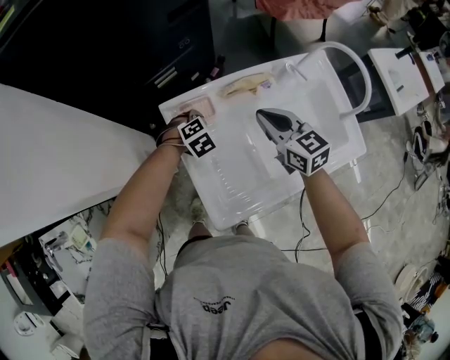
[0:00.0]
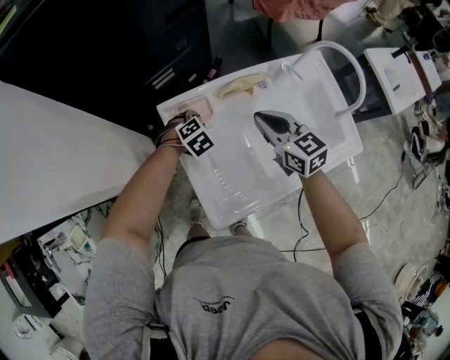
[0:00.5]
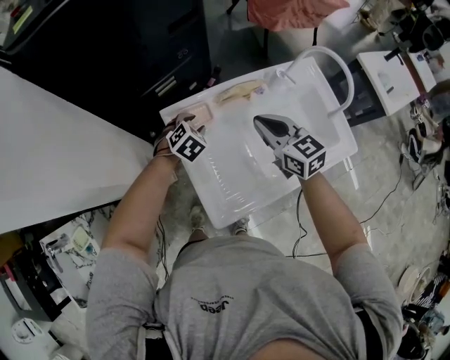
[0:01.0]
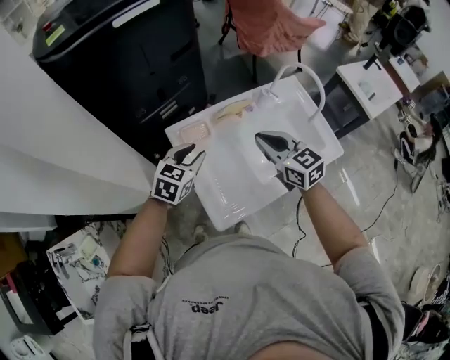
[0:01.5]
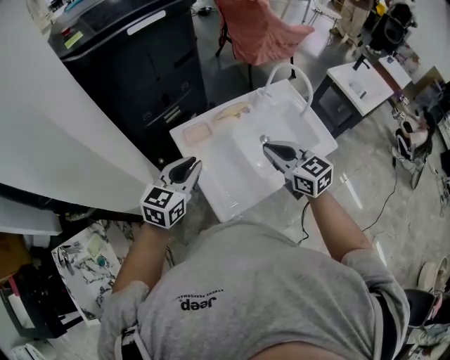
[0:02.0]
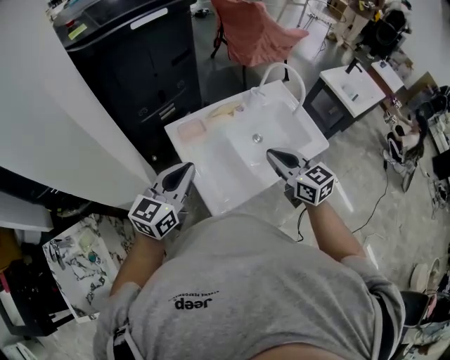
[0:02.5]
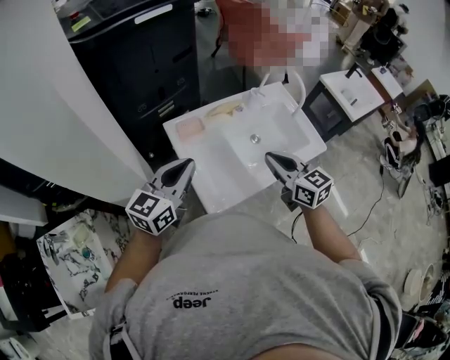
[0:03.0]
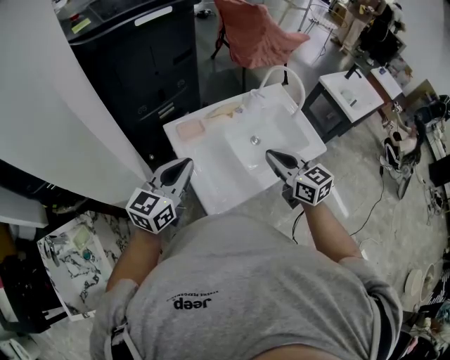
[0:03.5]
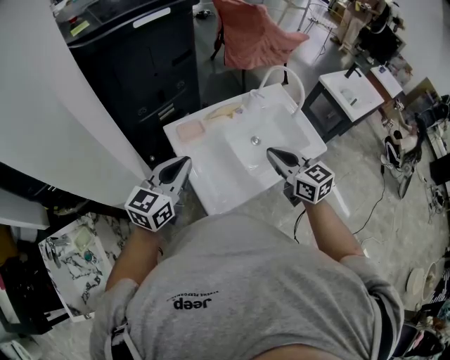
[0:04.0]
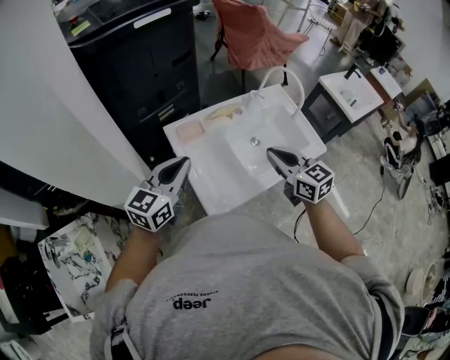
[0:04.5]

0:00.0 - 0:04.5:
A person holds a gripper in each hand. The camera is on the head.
0:00.0 - 0:02.0: The right gripper heads backward and upward, covering approximately 20 cm. The left gripper moves upward and backward, about 35 cm, tips its fingers upward by some 50 degrees, and opens and closes again.

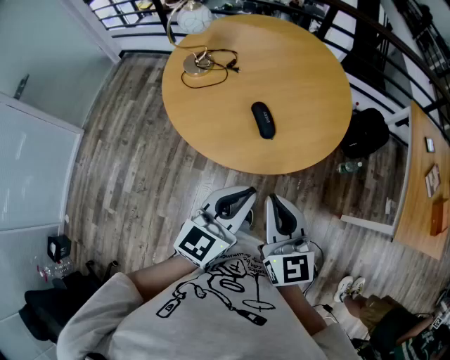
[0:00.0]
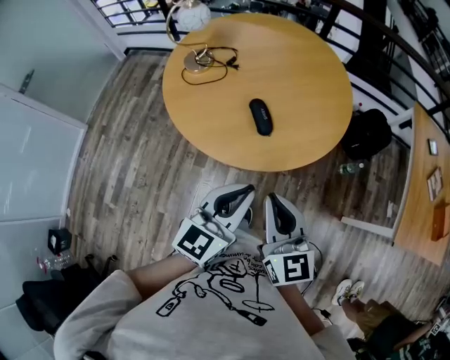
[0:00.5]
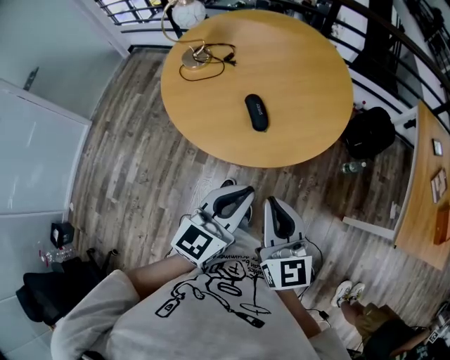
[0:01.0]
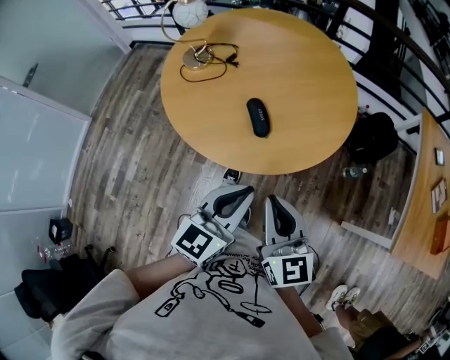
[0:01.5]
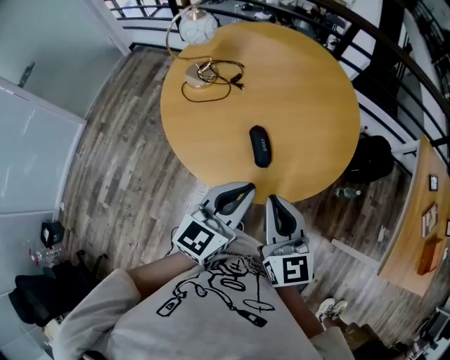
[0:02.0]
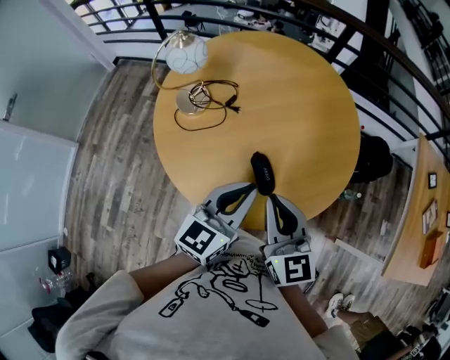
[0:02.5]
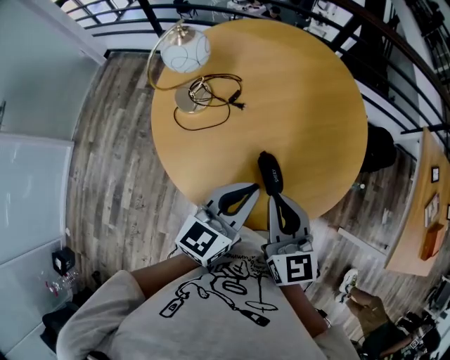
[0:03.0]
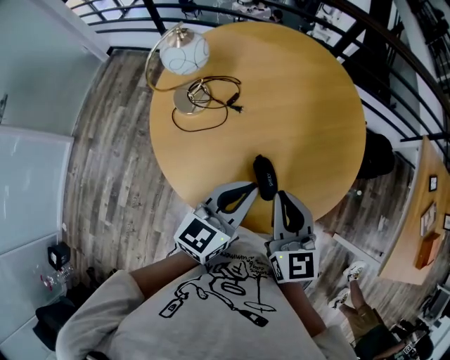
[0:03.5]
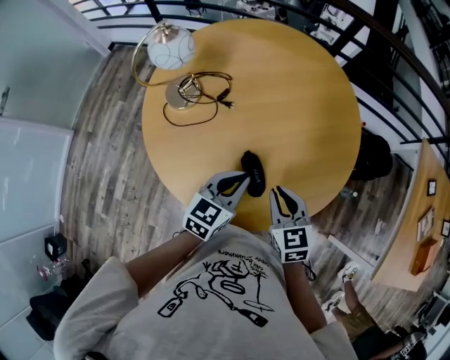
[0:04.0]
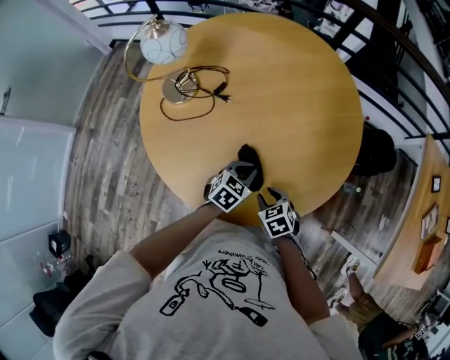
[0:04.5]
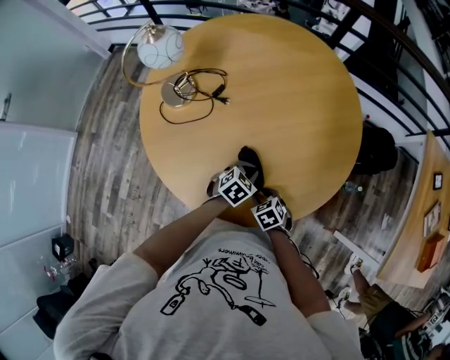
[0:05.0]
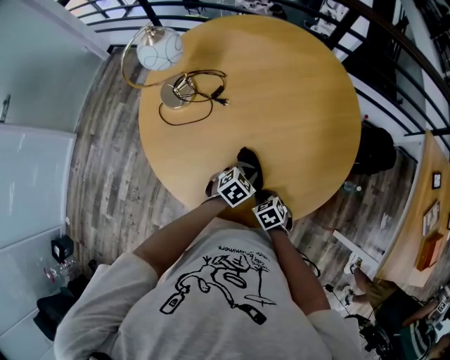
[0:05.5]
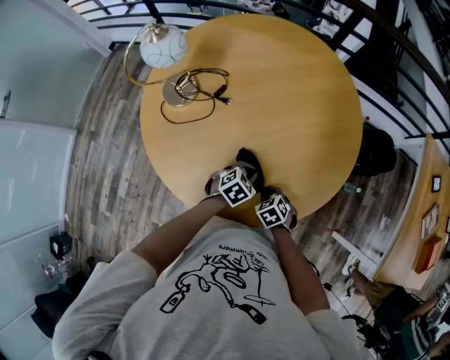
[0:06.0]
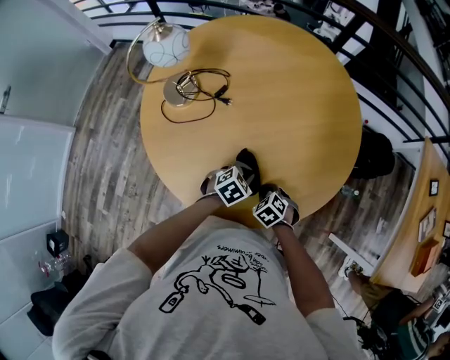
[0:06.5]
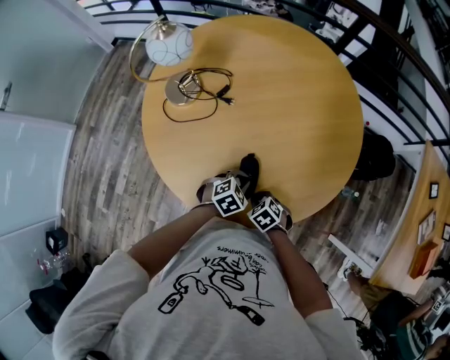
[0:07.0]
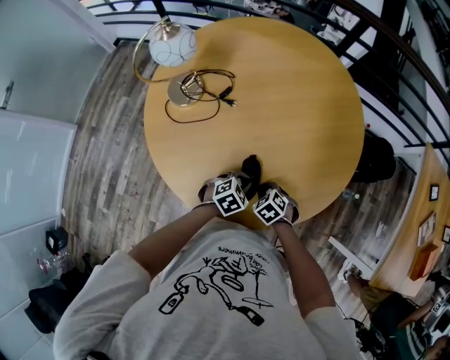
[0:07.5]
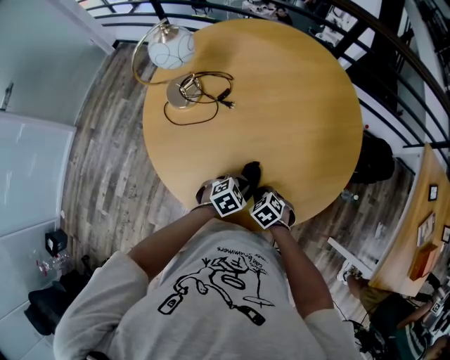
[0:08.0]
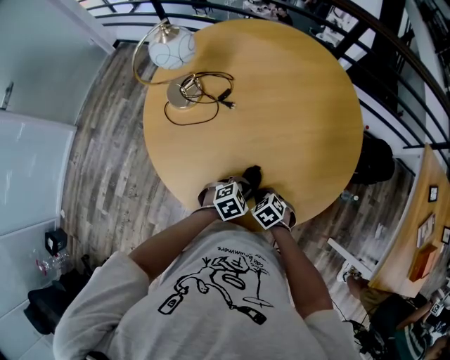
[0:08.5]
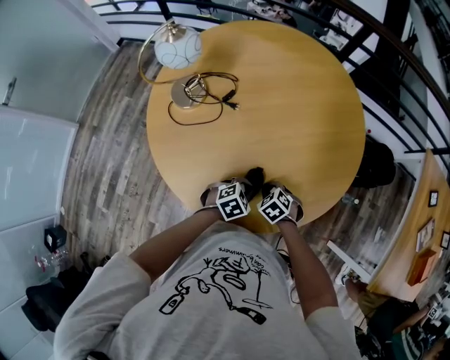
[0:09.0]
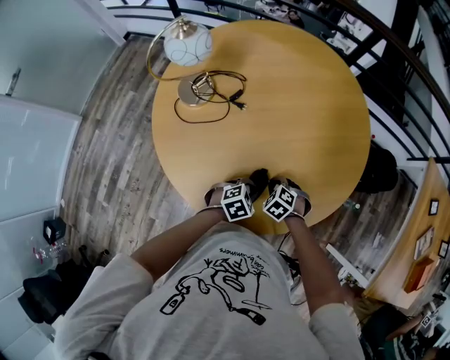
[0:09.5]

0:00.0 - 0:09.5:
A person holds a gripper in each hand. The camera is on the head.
0:00.0 - 0:02.0: The grippers both shift forward by roughly 15 cm.
0:02.0 - 0:04.0: Both grippers move forward and downward, roughly 20 cm. The right gripper rotates approximately 30 degrees.
0:04.0 - 0:05.5: Both grippers move downward, roughly 20 cm. The left gripper swivels approximately 40 degrees; the right gripper changes its angle by some 30 degrees, and opens, then closes once more.
0:07.5 - 0:09.5: The grippers stay close to where they were, moving slightly.

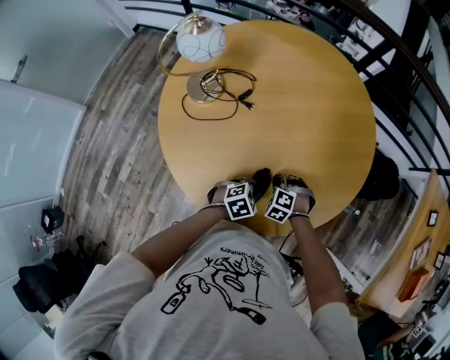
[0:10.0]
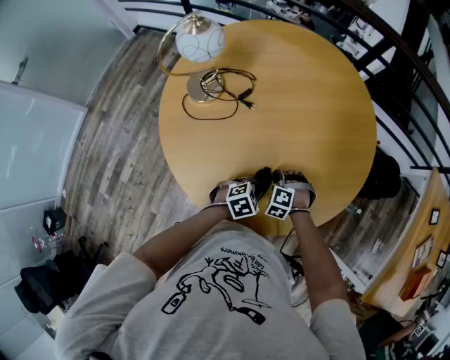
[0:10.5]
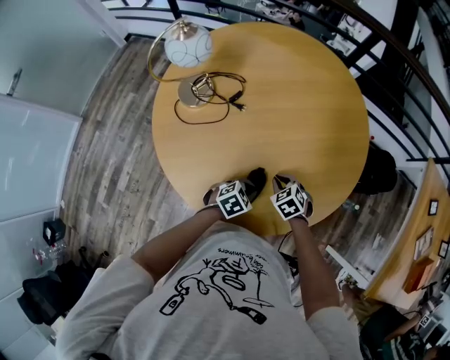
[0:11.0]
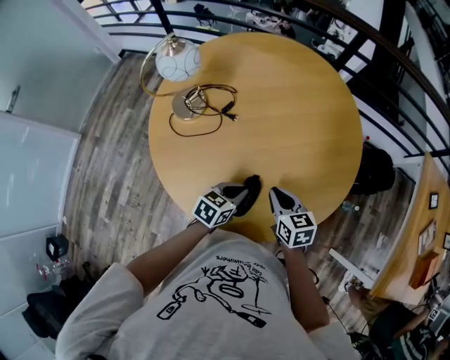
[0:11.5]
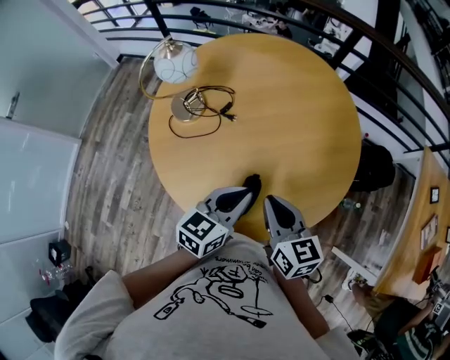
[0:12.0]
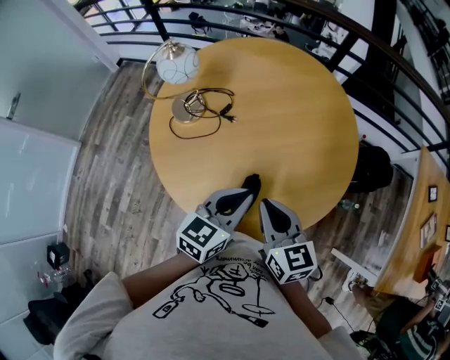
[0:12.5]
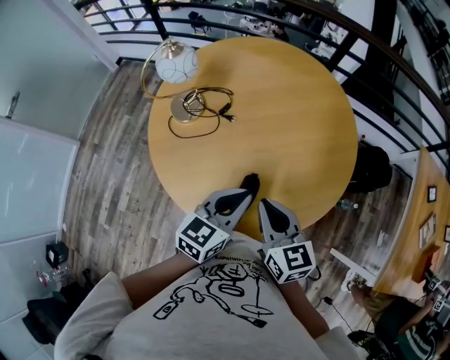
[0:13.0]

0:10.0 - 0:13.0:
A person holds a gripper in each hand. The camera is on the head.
0:10.0 - 0:11.5: The left gripper travels upward by some 10 cm, and rotates about 40 degrees. The right gripper heads upward, covering about 15 cm, and twists about 70 degrees clockwise, seen from behind.
0:11.5 - 0:13.0: Both grippers travel together upward, roughly 15 cm. The left gripper rotates about 20 degrees.

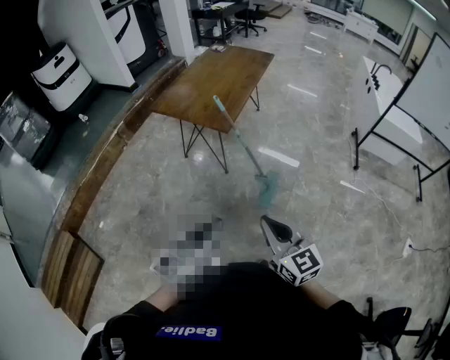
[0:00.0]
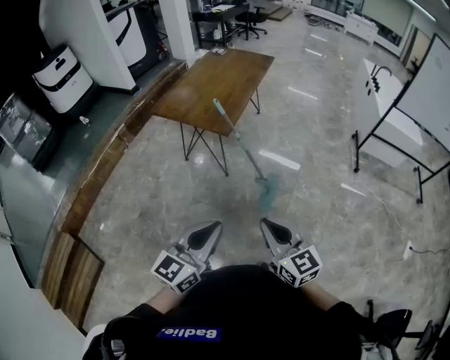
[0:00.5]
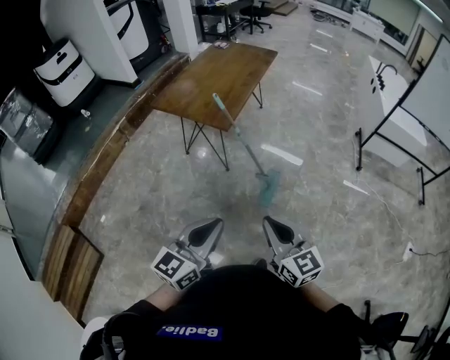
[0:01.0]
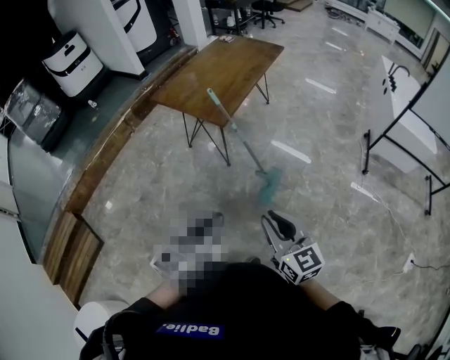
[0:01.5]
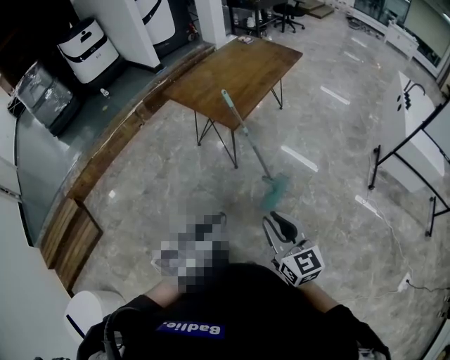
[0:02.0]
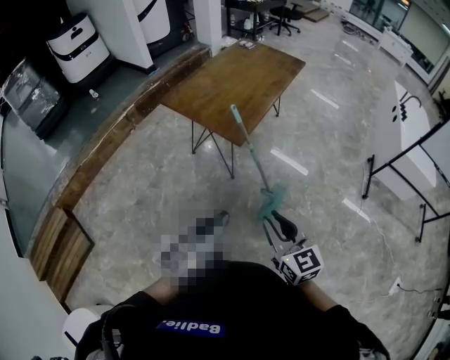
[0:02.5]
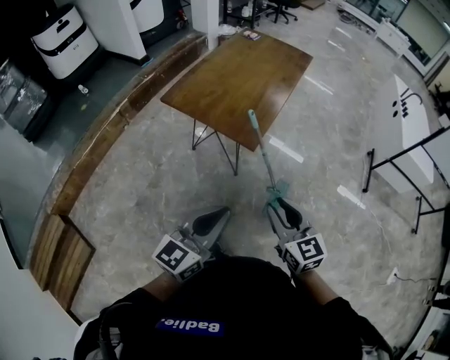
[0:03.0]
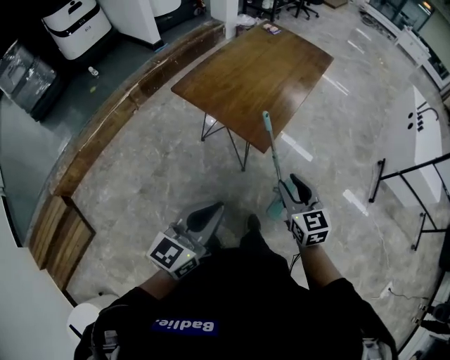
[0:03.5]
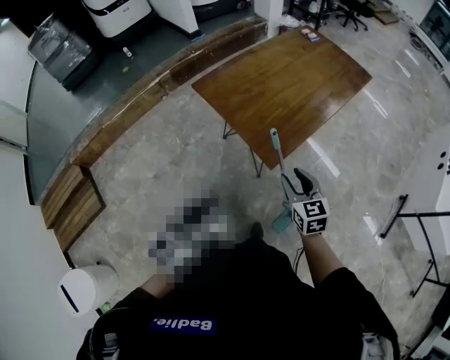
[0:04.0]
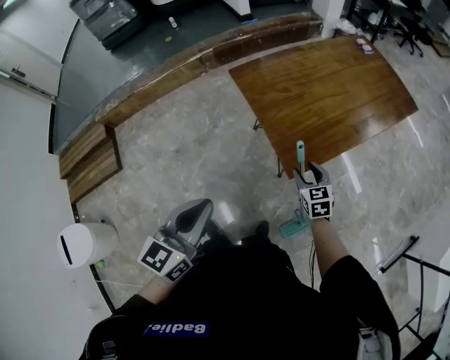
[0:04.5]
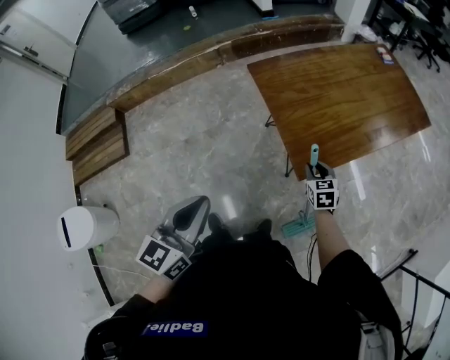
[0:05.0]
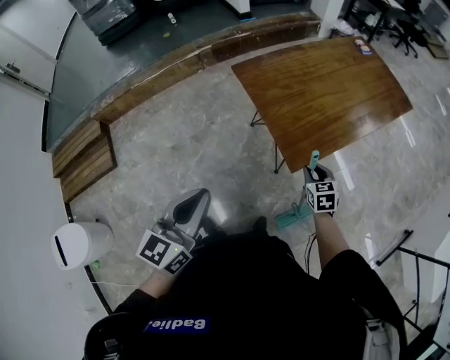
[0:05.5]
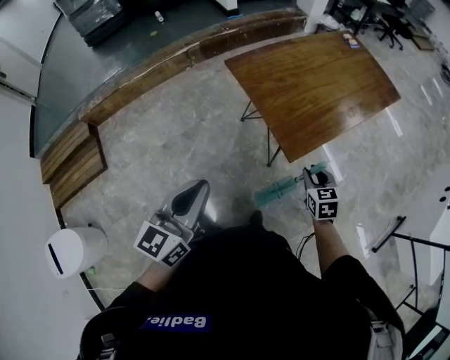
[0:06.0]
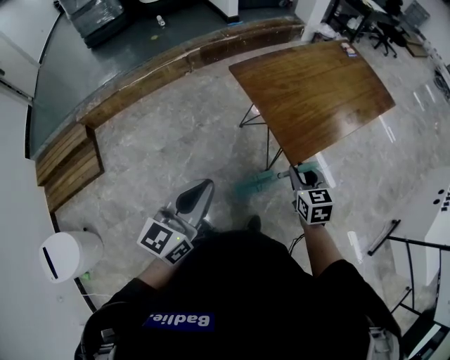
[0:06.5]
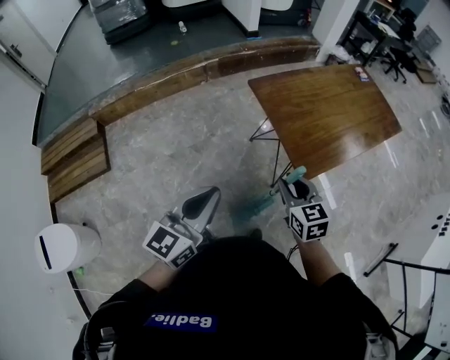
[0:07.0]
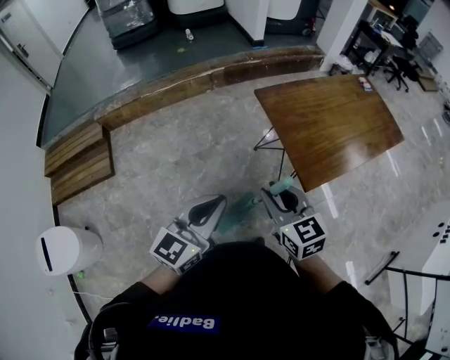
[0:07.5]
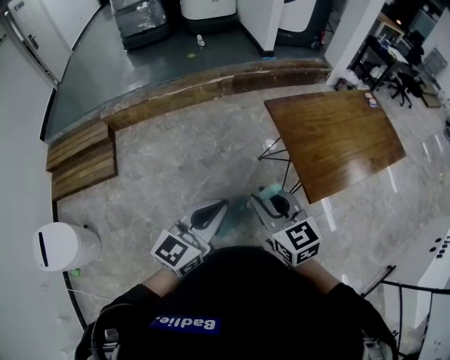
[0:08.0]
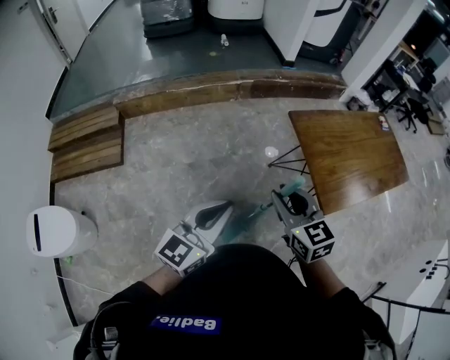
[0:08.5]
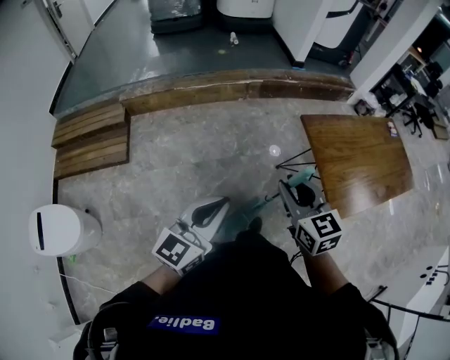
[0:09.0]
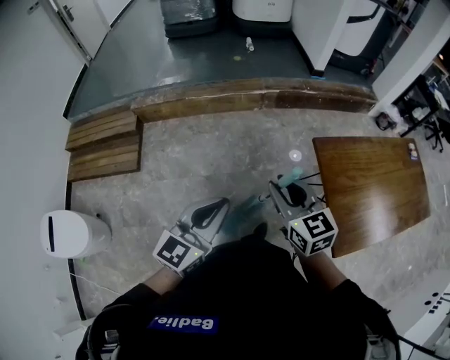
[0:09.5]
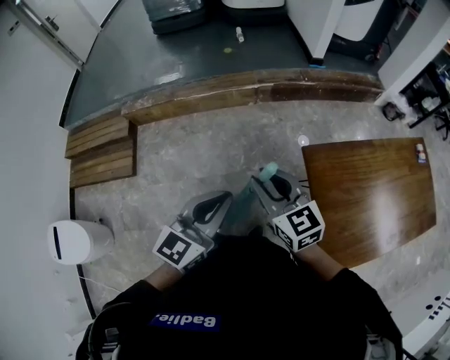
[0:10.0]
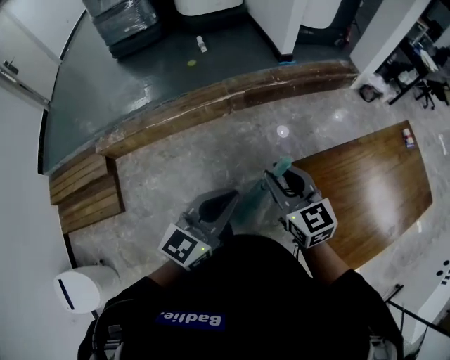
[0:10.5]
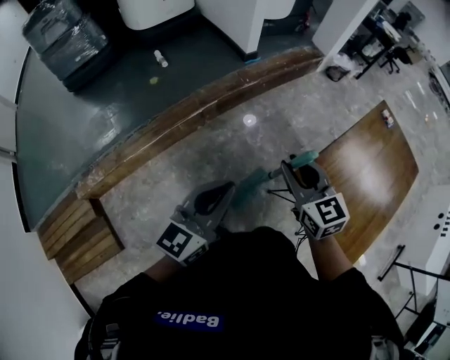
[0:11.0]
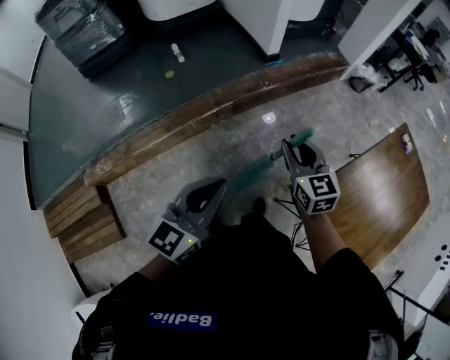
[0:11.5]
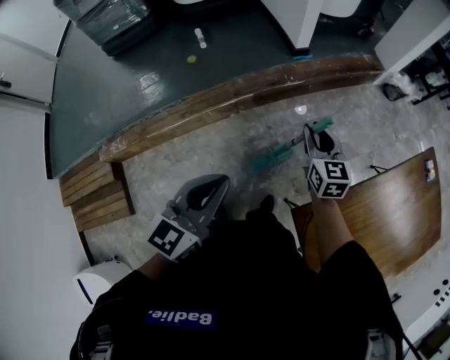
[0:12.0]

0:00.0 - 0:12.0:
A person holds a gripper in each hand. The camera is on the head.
0:00.0 - 0:02.0: Both grippers move to the right and forward, approximately 10 cm. The right gripper opens.
0:02.0 - 0:04.0: The left gripper shifts about 35 cm forward and to the left. Meanwhile the right gripper goes about 40 cm forward, and swivels some 20 degrees.
0:04.0 - 0:06.0: The left gripper moves to the left, some 10 cm. Meanwhile the right gripper moves downward, some 5 cm.
0:06.0 - 0:08.0: The left gripper travels to the left by about 10 cm. Meanwhile the right gripper moves to the left and upward, about 40 cm, and changes its angle by some 40 degrees.
0:08.0 - 0:10.0: The two grippers go some 35 cm forward.
0:10.0 - 0:12.0: The two grippers travel together, roughly 50 cm. The right gripper changes its angle by about 40 degrees.
